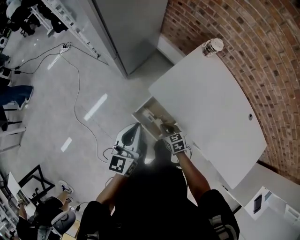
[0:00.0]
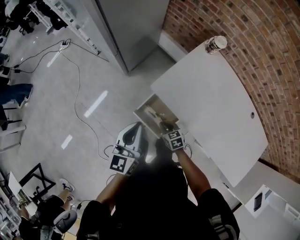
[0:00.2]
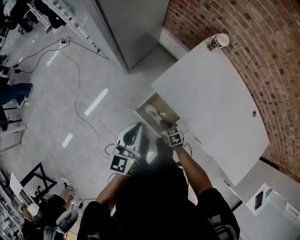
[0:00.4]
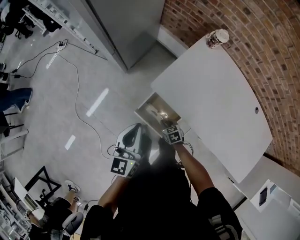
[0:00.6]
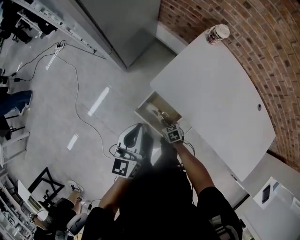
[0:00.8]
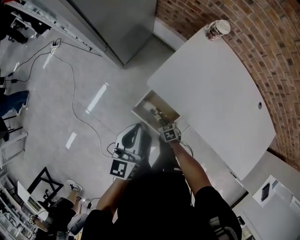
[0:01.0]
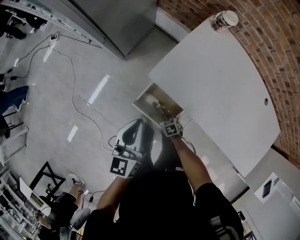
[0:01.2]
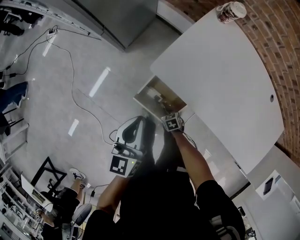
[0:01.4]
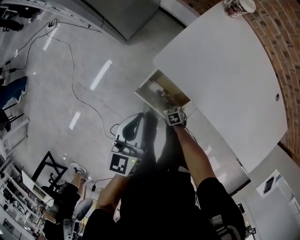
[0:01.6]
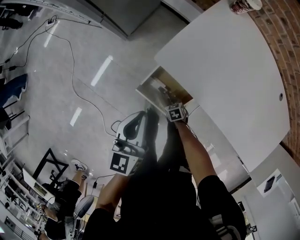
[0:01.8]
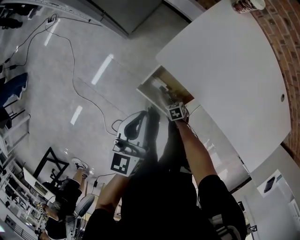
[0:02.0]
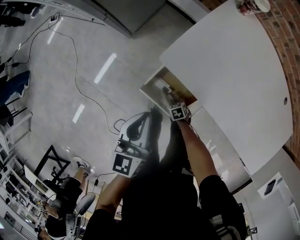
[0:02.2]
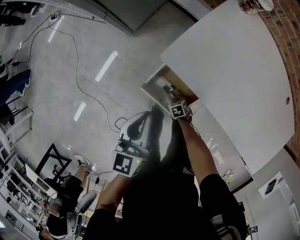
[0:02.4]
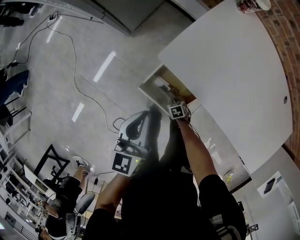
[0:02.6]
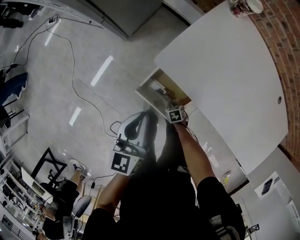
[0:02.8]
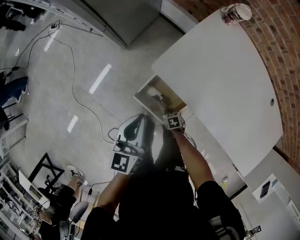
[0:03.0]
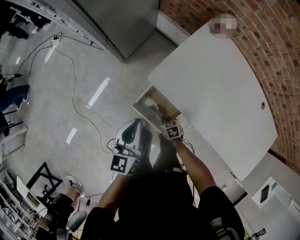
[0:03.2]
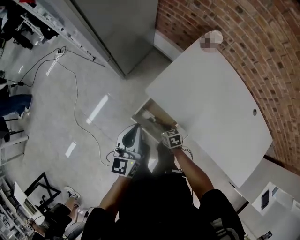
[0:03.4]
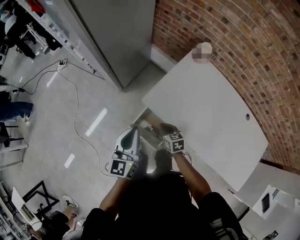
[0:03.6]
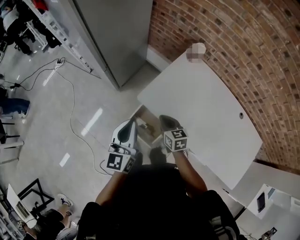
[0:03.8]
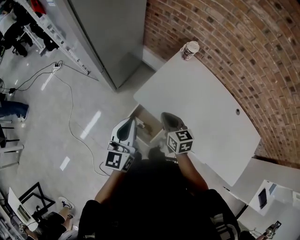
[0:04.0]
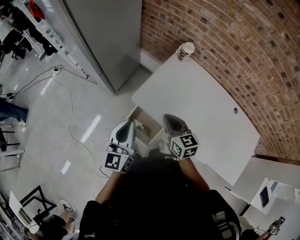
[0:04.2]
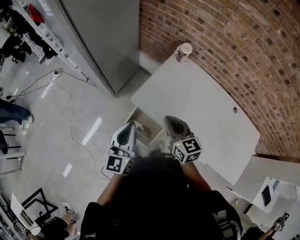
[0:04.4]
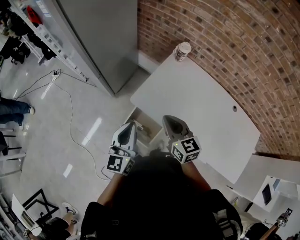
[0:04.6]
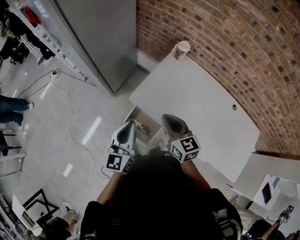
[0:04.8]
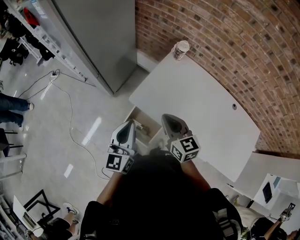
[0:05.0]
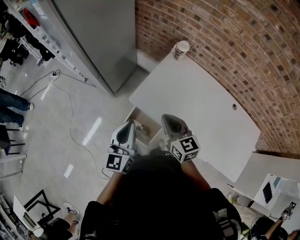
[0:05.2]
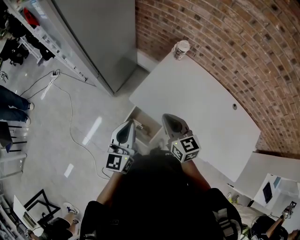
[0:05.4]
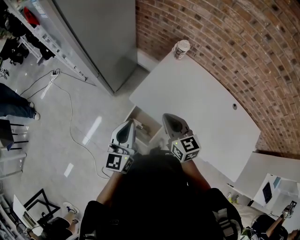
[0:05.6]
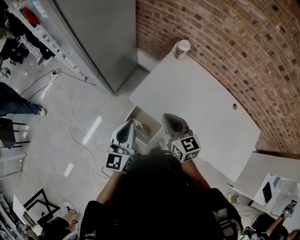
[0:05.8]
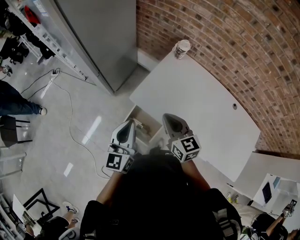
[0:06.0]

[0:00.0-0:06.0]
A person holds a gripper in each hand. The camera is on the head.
0.0 to 1.6 s: The right gripper goes approximately 25 cm downward, and turns by some 20 degrees, while the left gripper shifts some 10 cm downward.
1.6 to 3.0 s: The grippers stay close to where they were, moving slightly.
3.0 to 4.4 s: The right gripper heads upward, covering approximately 50 cm, and points its fingers approximately 50 degrees further upward. Meanwhile the left gripper is displaced upward by some 20 cm.
4.4 to 6.0 s: Both grippers stay about where they are.

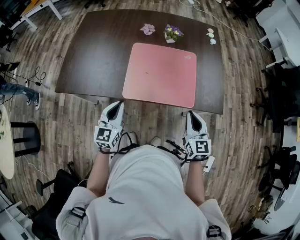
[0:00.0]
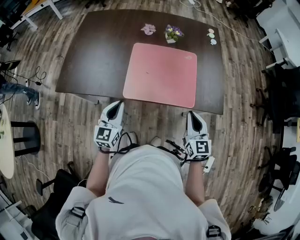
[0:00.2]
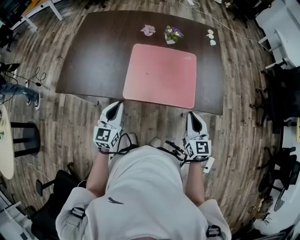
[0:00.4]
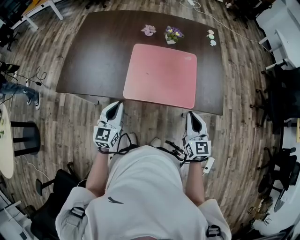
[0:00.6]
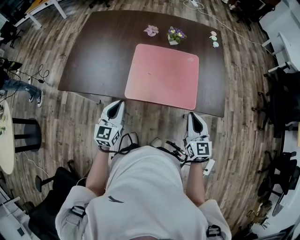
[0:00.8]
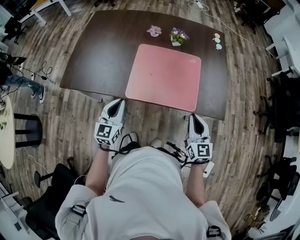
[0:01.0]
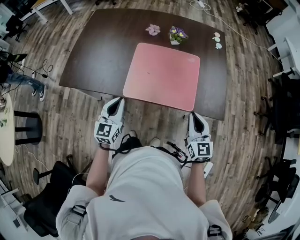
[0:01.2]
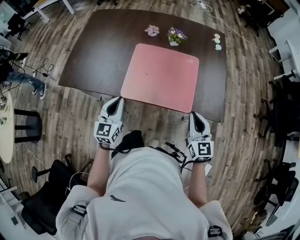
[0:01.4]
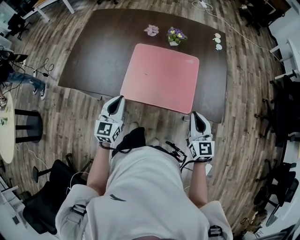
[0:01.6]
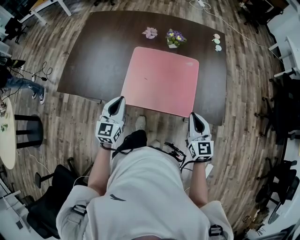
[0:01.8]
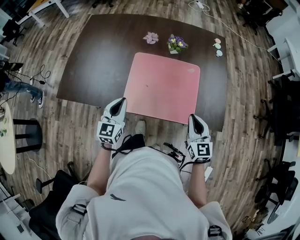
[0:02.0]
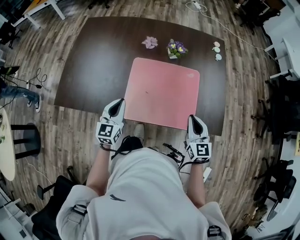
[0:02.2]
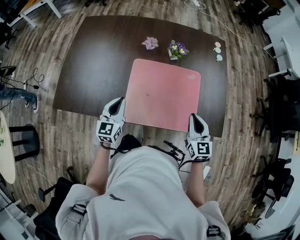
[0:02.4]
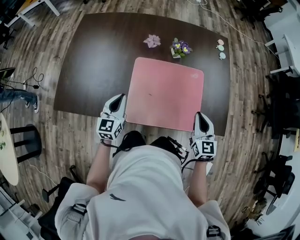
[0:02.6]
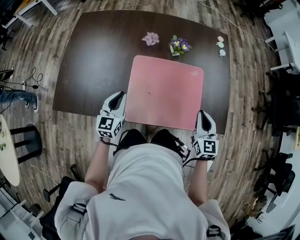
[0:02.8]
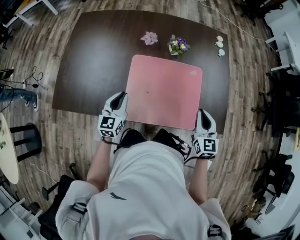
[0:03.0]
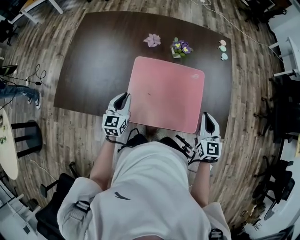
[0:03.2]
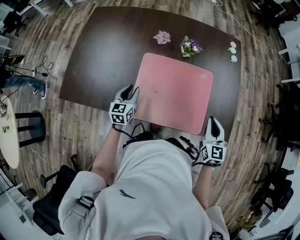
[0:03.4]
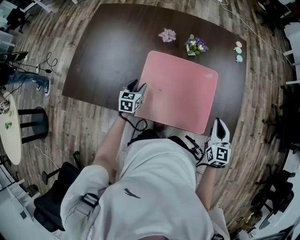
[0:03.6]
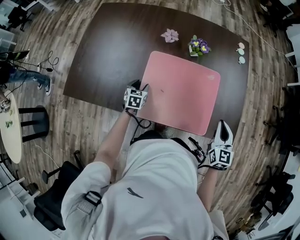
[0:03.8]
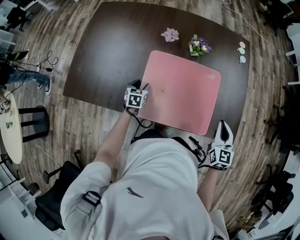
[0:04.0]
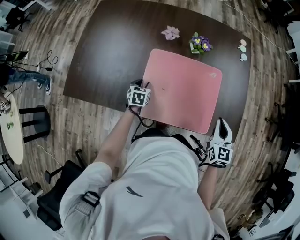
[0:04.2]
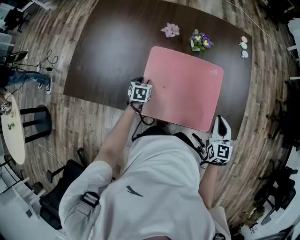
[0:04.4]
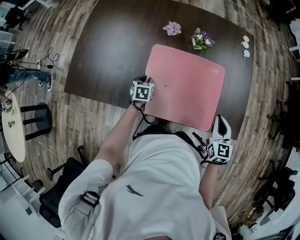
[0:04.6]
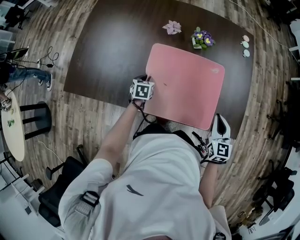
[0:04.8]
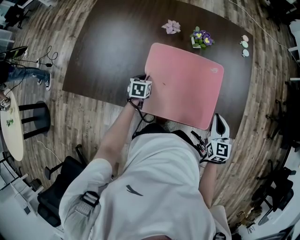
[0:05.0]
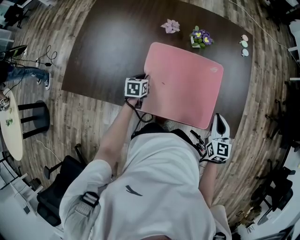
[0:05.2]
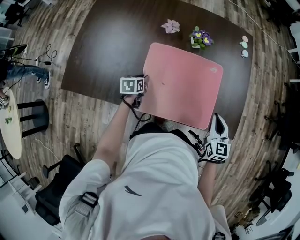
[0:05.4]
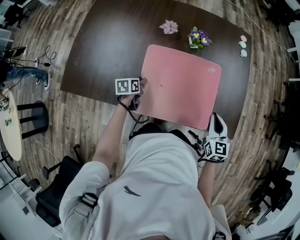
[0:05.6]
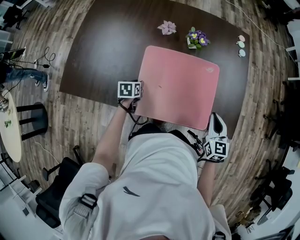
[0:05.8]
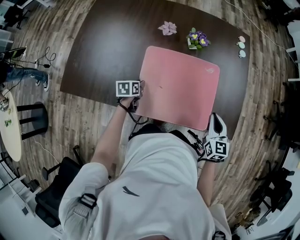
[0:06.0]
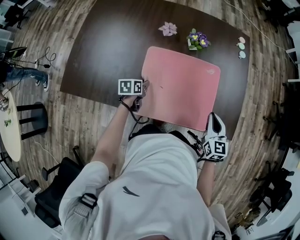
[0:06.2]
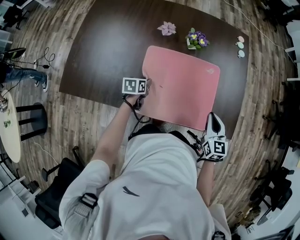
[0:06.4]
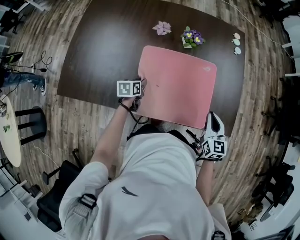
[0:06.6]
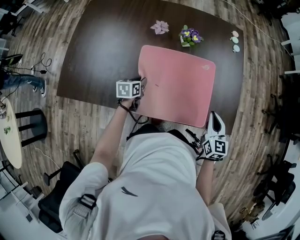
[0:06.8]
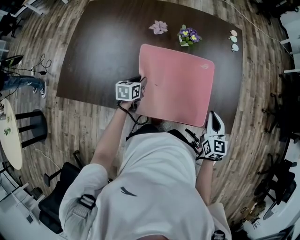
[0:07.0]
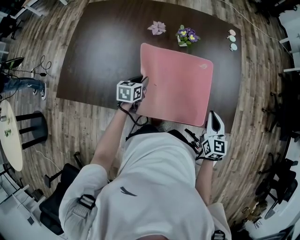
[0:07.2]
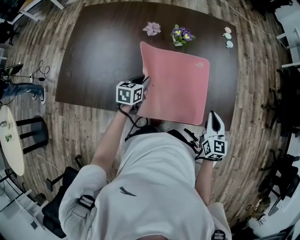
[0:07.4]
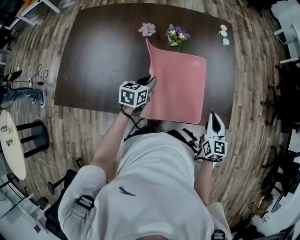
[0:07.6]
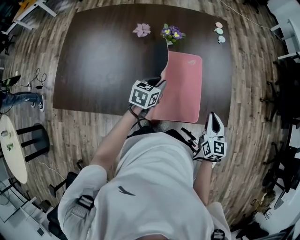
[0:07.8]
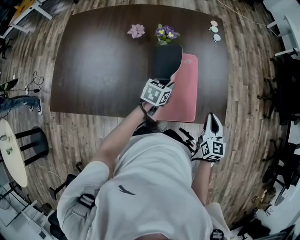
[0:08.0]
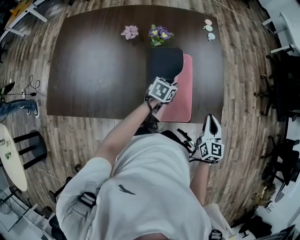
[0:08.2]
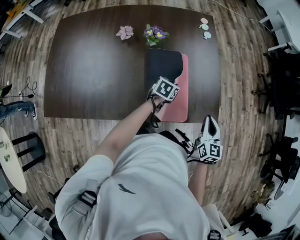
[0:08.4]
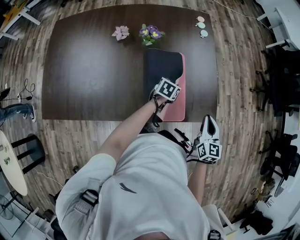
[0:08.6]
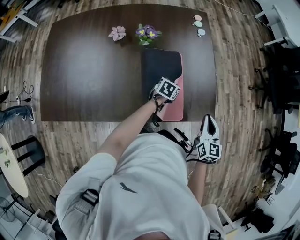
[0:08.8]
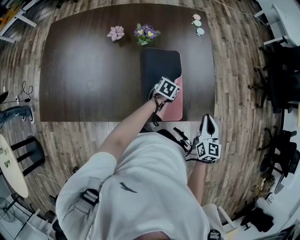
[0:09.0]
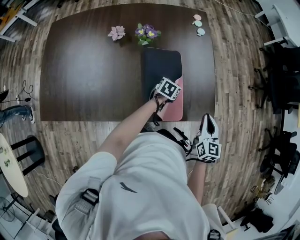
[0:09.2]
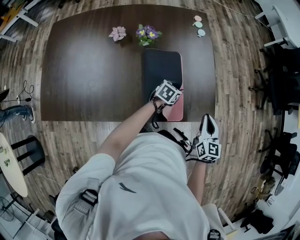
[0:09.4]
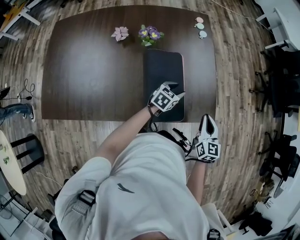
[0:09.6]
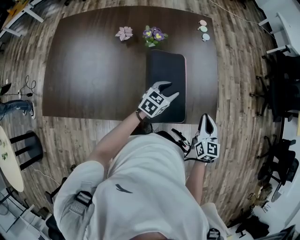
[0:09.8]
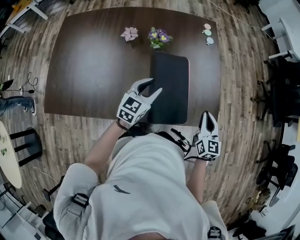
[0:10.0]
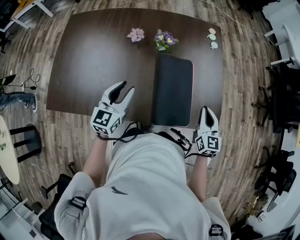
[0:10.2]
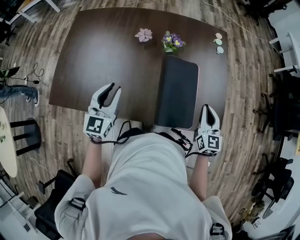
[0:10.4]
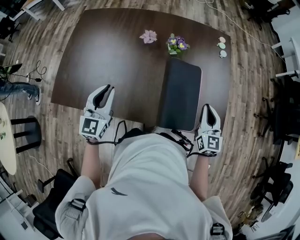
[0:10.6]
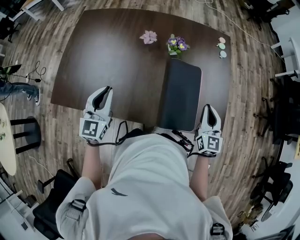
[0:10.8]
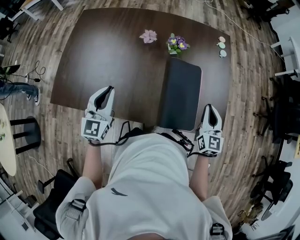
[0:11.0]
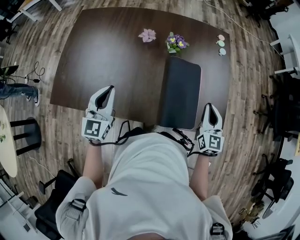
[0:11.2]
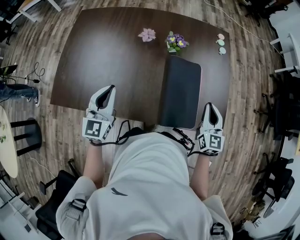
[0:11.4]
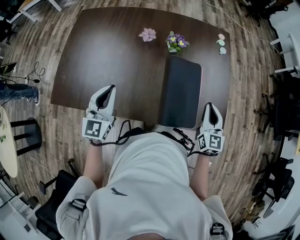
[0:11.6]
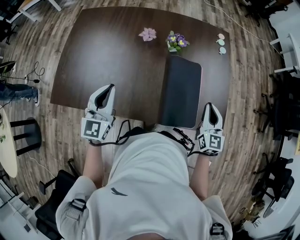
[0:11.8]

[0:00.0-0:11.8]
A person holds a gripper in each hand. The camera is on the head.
0.0 to 1.4 s: There are only small adjustments of the grippers.
1.4 to 3.0 s: Both grippers travel together forward, roughly 15 cm.
3.0 to 4.4 s: The left gripper moves downward, approximately 15 cm, angles its fingers downward, by about 40 degrees, and opens.
4.4 to 6.0 s: The left gripper turns by roughly 20 degrees.
6.0 to 7.4 s: The left gripper is displaced to the right and upward by some 10 cm, and rotates roughly 20 degrees.
7.4 to 8.8 s: The right gripper goes some 10 cm to the right; the left gripper goes about 30 cm to the right and forward, and changes its angle by some 30 degrees.
8.8 to 10.4 s: The left gripper changes place by approximately 40 cm, tilts its fingers some 40 degrees upward, and opens, then closes once more, while the right gripper shifts by about 15 cm.
10.4 to 11.8 s: The left gripper closes up.

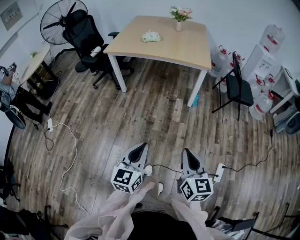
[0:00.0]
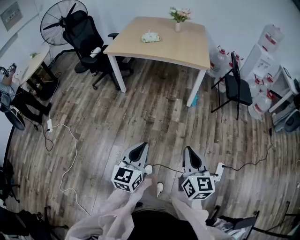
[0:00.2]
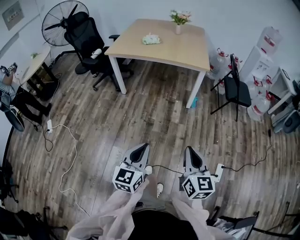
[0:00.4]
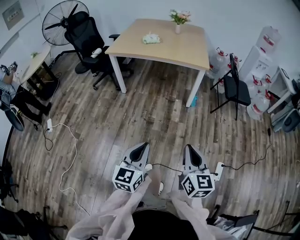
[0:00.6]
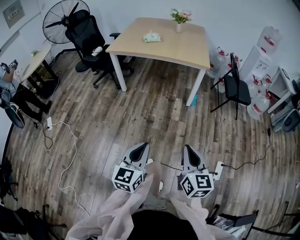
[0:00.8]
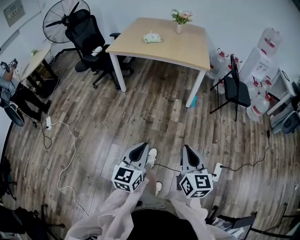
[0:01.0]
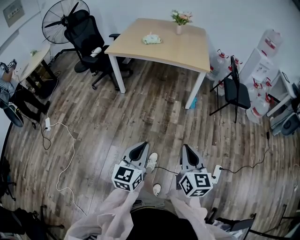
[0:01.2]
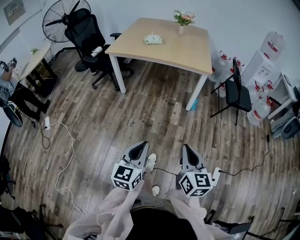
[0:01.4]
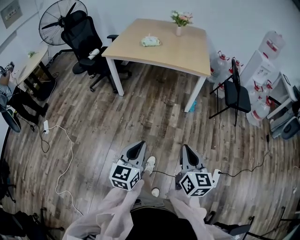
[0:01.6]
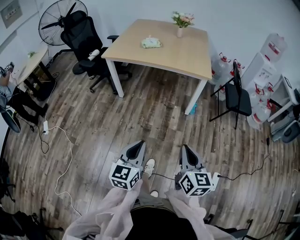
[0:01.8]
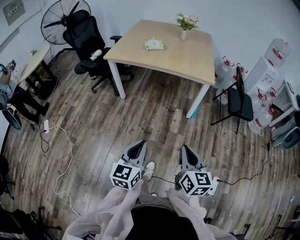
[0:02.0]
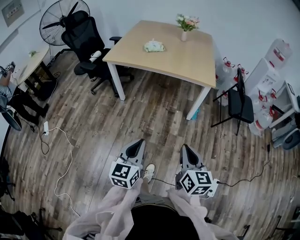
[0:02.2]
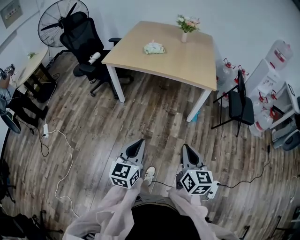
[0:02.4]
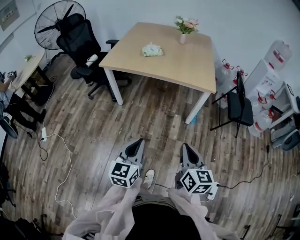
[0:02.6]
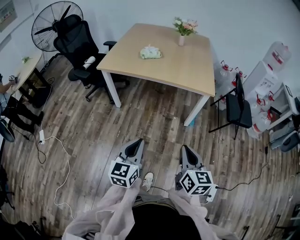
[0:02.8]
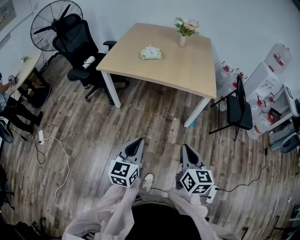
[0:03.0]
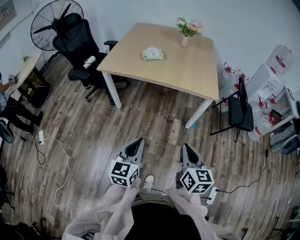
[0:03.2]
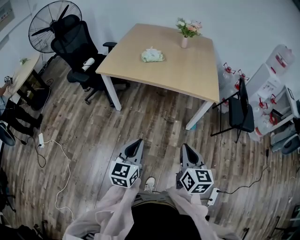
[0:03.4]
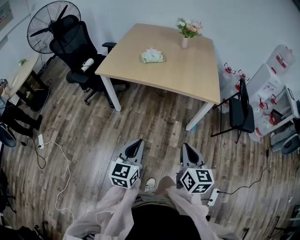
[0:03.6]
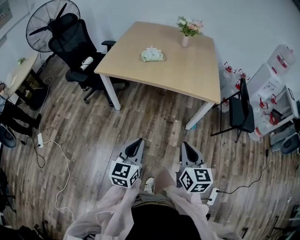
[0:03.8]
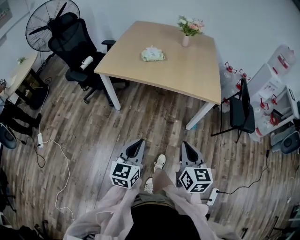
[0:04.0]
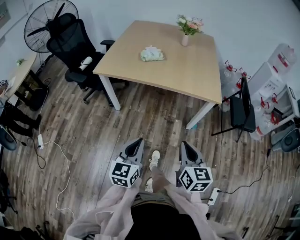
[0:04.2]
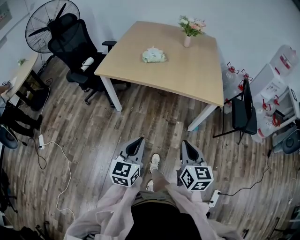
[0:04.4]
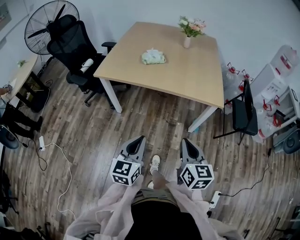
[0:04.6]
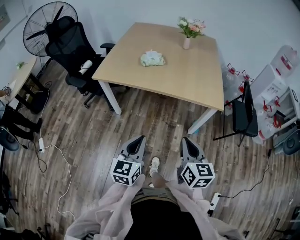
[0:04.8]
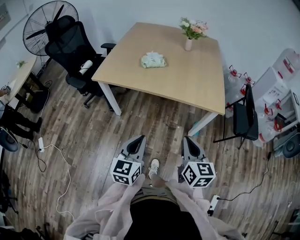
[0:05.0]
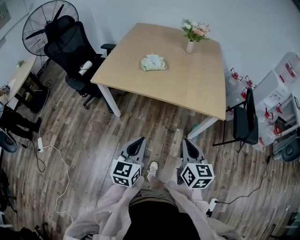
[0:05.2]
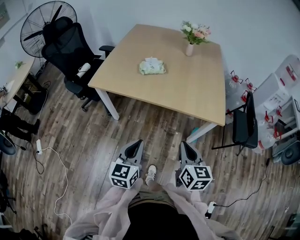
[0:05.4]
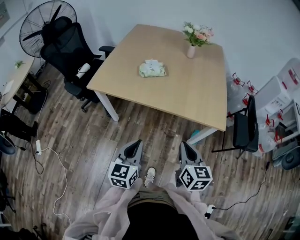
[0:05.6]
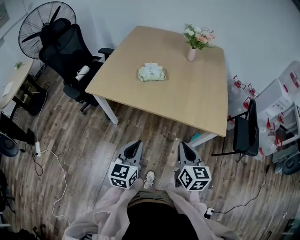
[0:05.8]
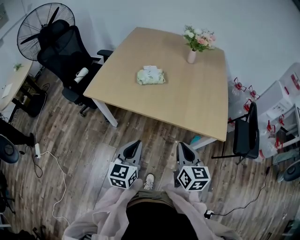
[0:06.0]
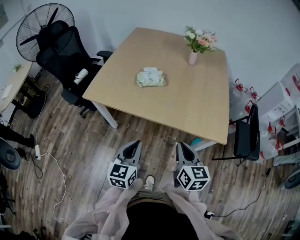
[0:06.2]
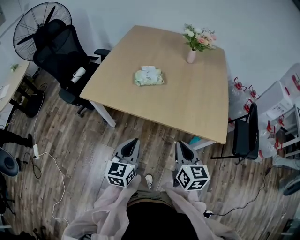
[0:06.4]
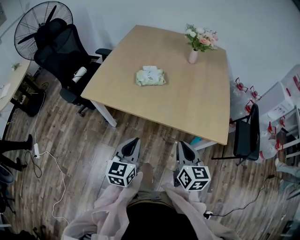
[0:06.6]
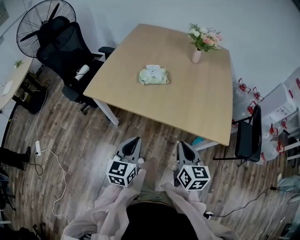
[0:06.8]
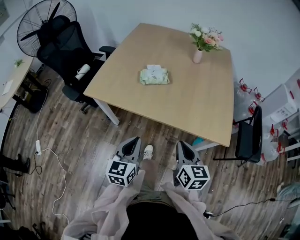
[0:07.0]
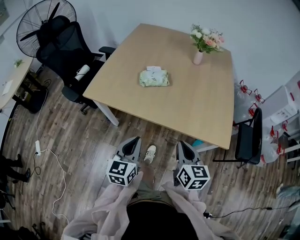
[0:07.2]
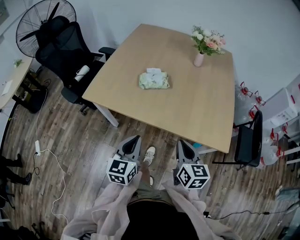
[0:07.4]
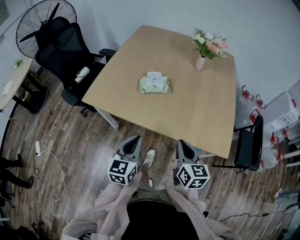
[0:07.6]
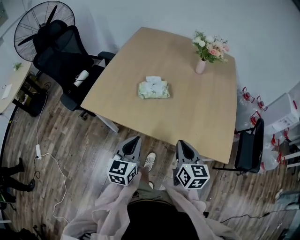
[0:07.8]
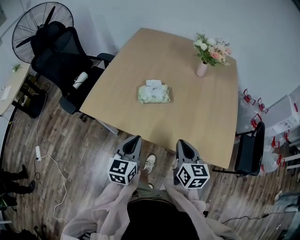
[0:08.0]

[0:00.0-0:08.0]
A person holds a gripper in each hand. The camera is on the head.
0.0 to 1.6 s: Both grippers travel together forward, some 5 cm.
1.6 to 3.2 s: The grippers both shift forward by about 25 cm.
3.2 to 4.8 s: The grippers both shift forward by approximately 15 cm.
4.8 to 6.4 s: Both grippers move forward, about 20 cm.
6.4 to 8.0 s: The grippers both shift forward by roughly 15 cm.
